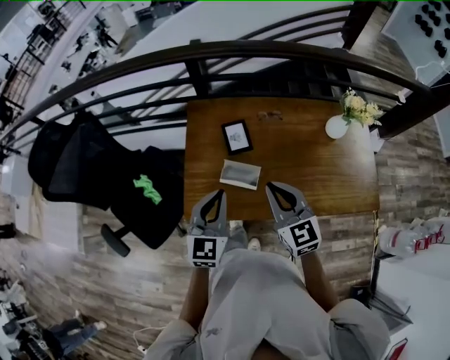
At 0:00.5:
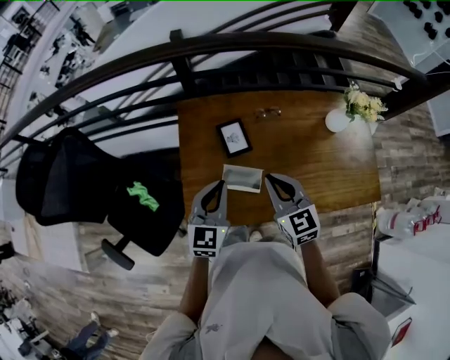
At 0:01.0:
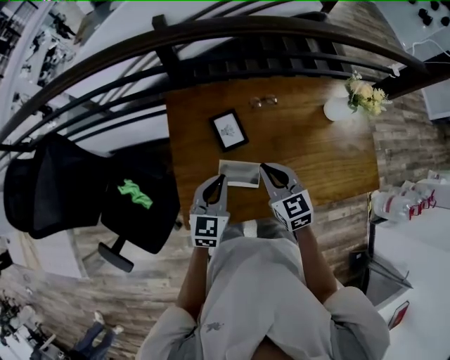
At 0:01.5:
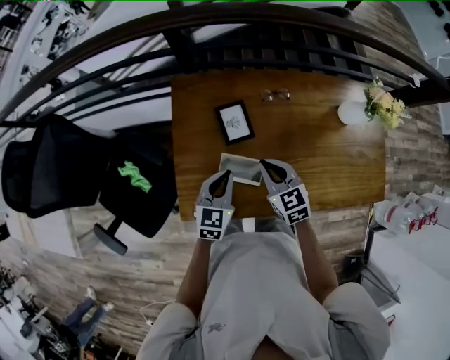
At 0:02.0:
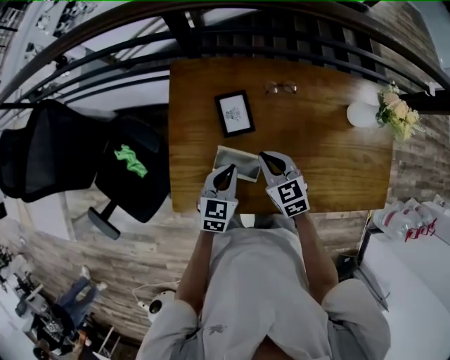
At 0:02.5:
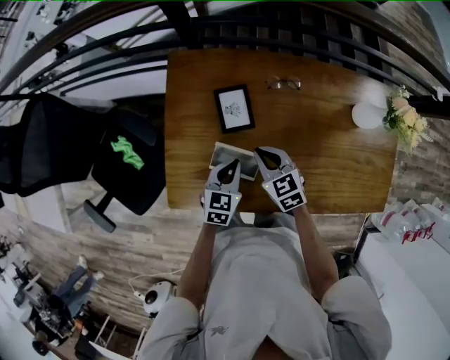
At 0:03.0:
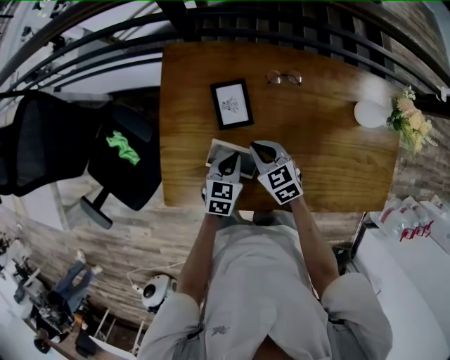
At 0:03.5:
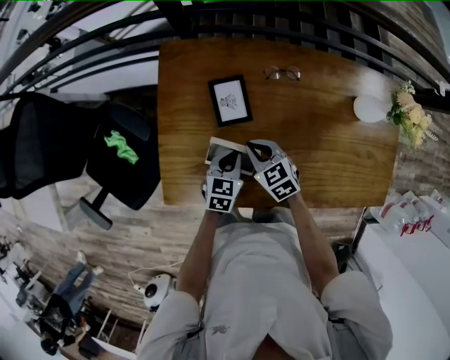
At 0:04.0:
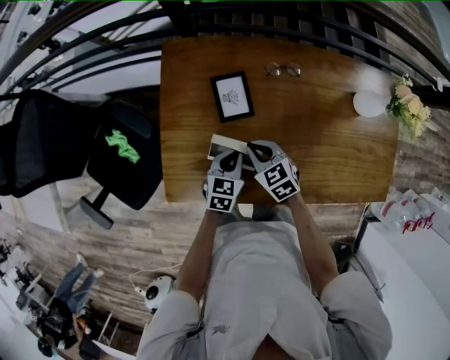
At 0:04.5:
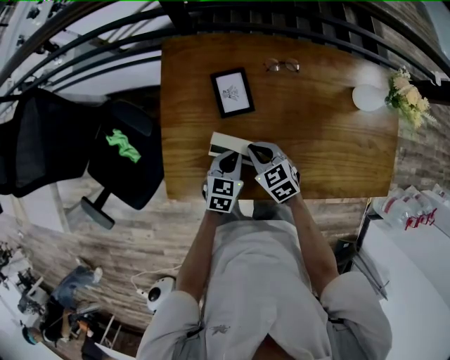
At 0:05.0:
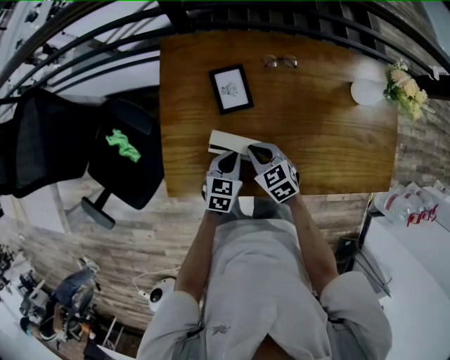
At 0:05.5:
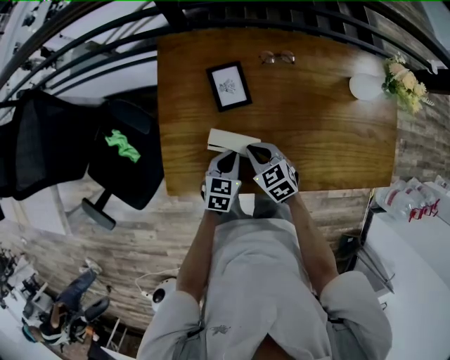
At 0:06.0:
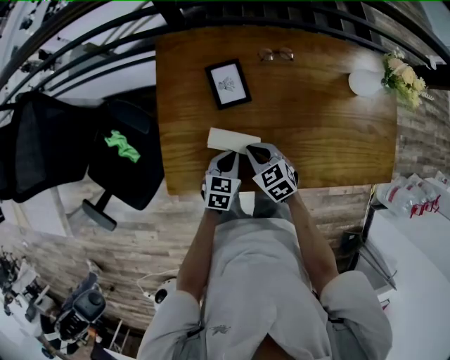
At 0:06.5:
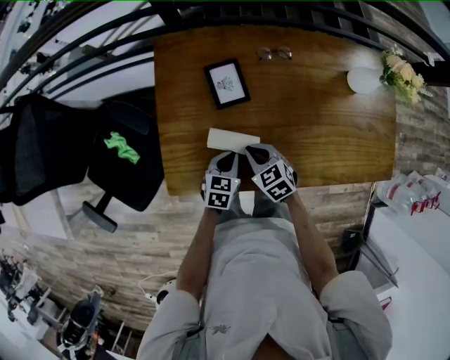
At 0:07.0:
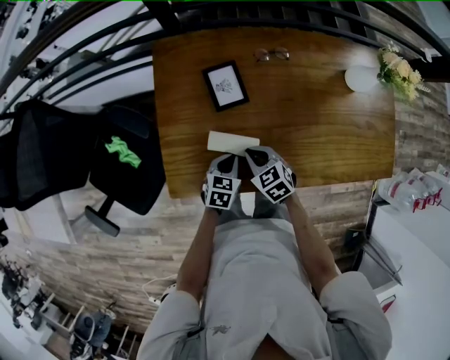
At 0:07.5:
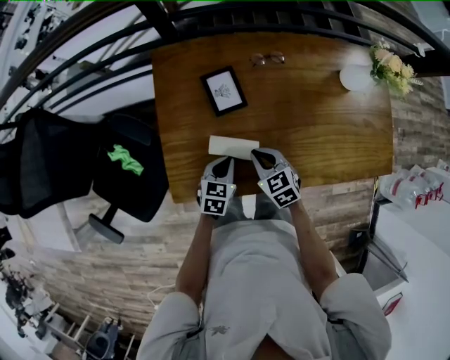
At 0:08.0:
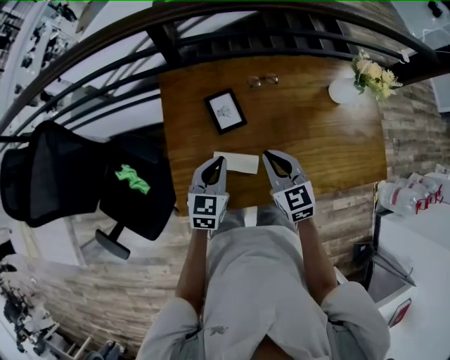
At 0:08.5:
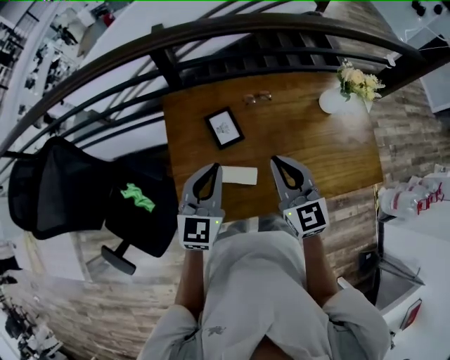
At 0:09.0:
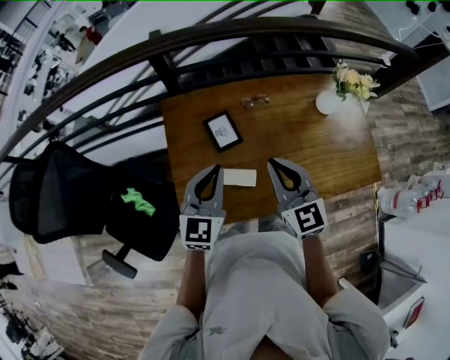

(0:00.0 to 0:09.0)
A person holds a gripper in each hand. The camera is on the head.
0:00.0 - 0:02.0: Both grippers travel together downward and forward, roughly 25 cm. The left gripper turns by roughly 20 degrees. Meanwhile the right gripper rotates some 20 degrees.
0:02.0 - 0:04.5: The grippers both shift downward by approximately 10 cm.
0:04.5 - 0:07.0: The right gripper moves some 5 cm; the left gripper moves approximately 5 cm.
0:07.0 - 0:09.0: The two grippers go roughly 30 cm upward. The right gripper tilts its fingers about 40 degrees upward. Meanwhile the left gripper tilts its fingers approximately 40 degrees upward.

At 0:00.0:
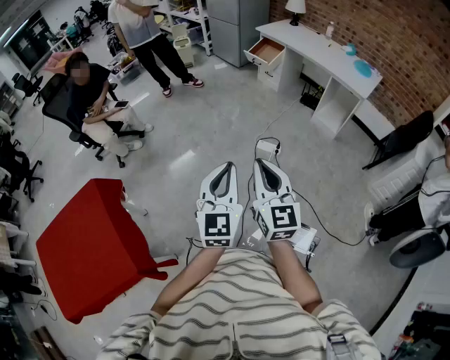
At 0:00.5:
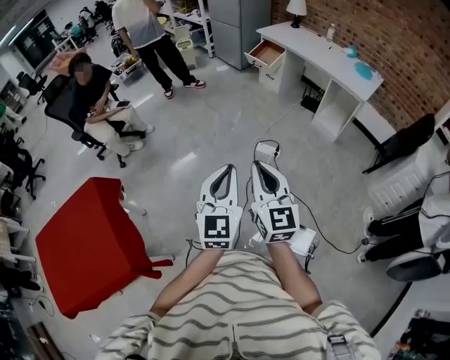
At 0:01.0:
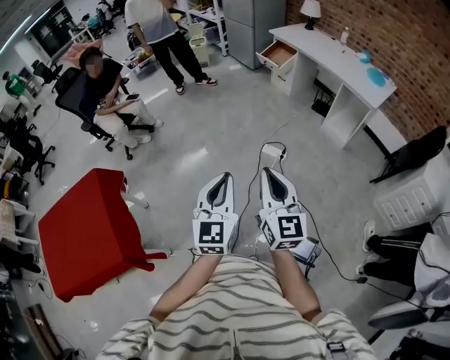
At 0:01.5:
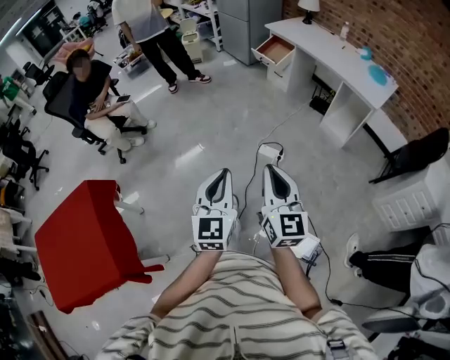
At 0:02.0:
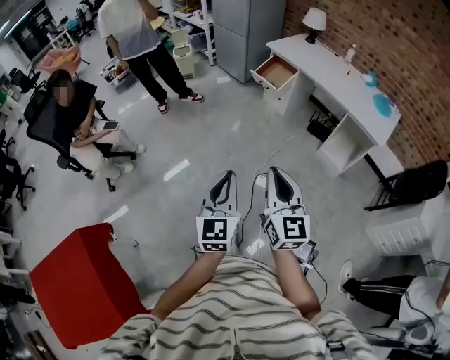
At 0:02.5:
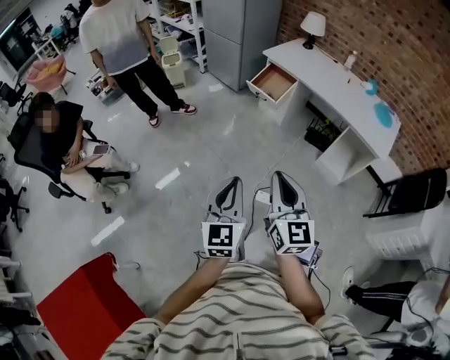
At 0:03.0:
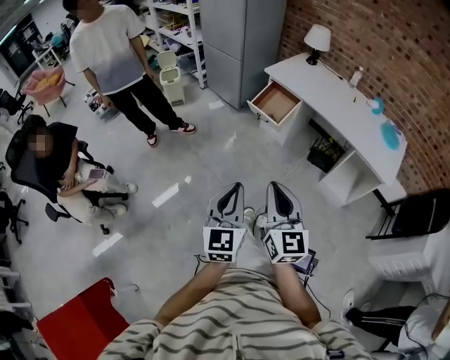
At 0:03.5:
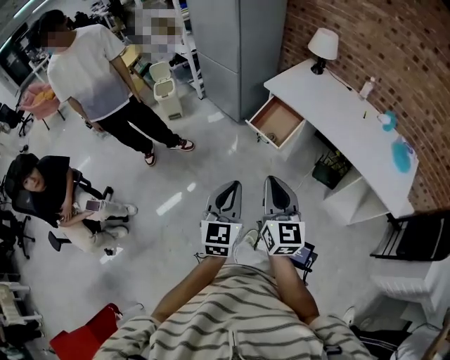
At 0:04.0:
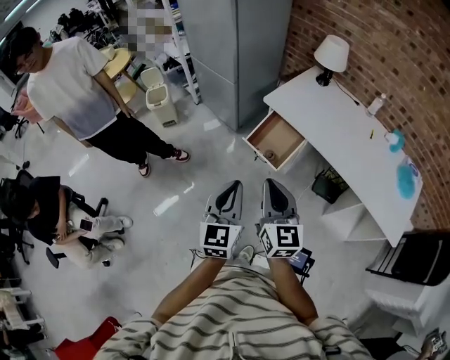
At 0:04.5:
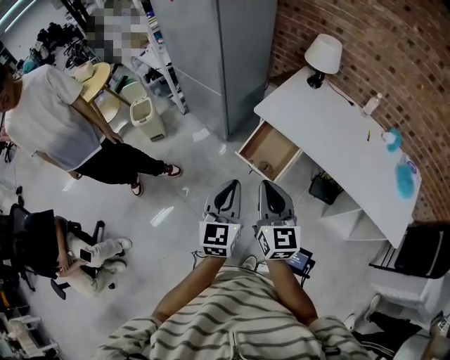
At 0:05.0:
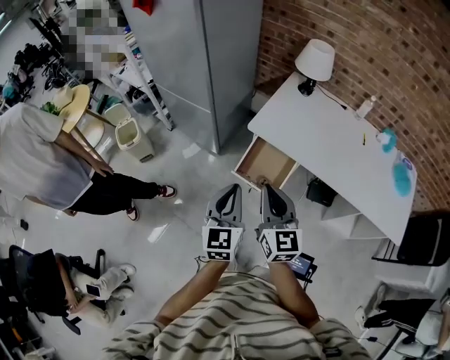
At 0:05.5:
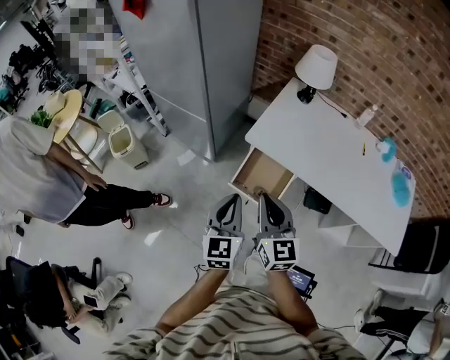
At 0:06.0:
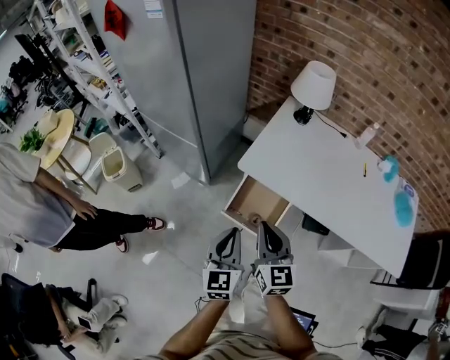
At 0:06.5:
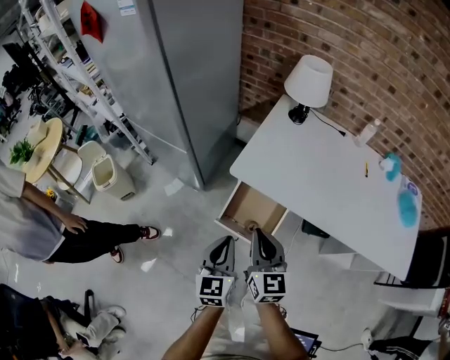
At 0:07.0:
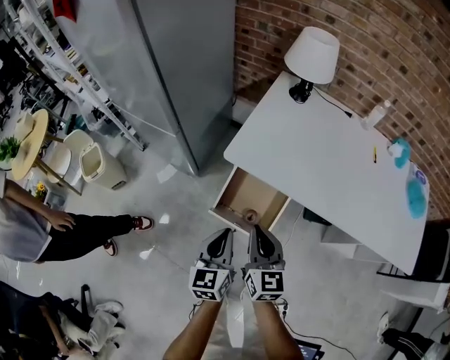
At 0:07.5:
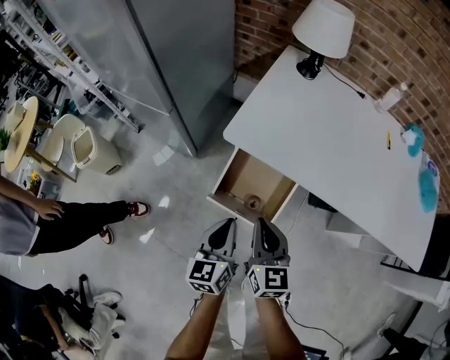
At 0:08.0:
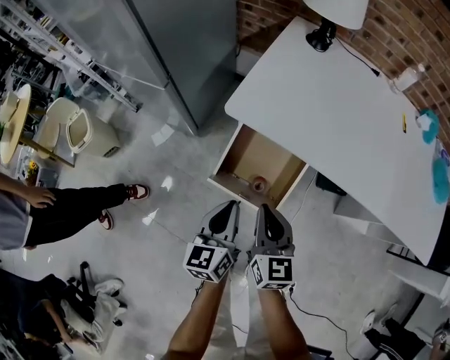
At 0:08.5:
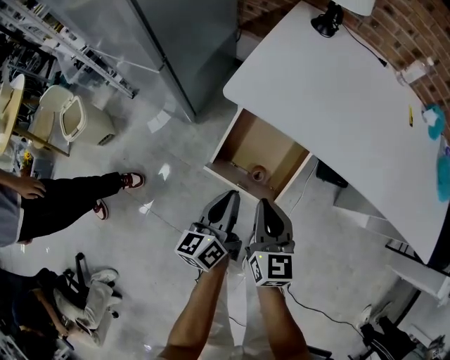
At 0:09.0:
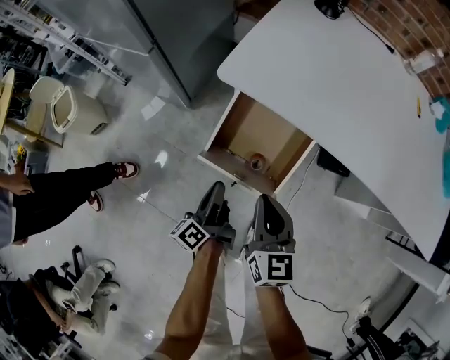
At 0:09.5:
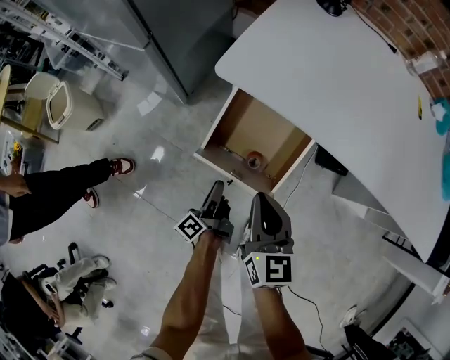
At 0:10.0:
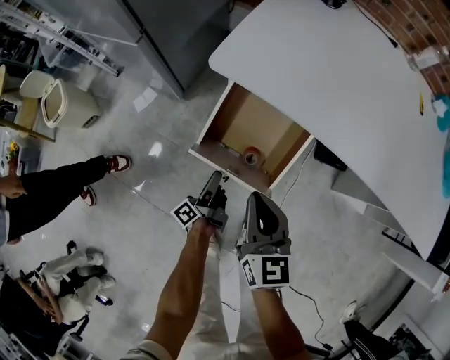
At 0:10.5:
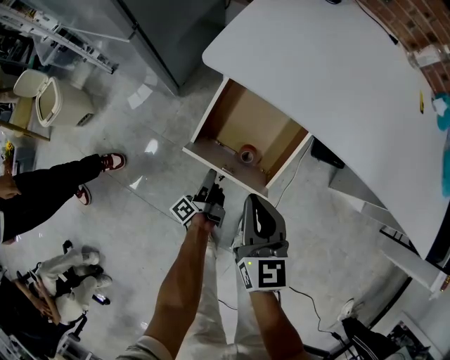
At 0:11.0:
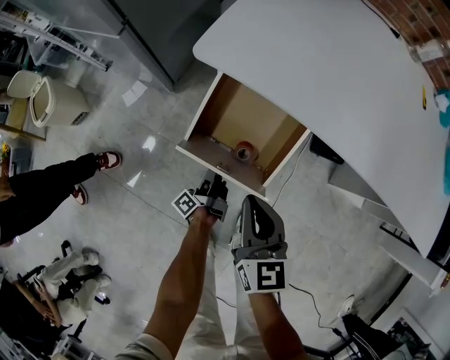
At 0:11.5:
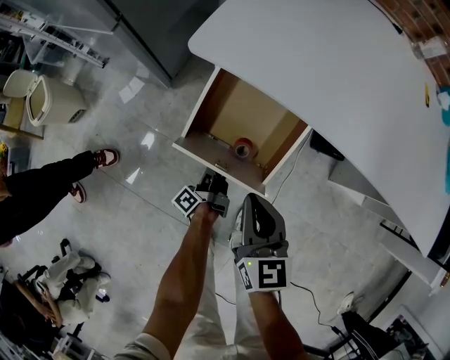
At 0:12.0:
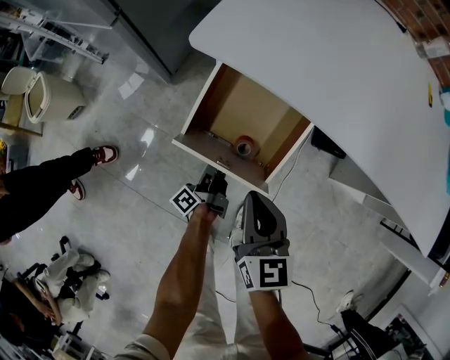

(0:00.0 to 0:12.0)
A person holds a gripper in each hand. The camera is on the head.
0:00.0 - 0:02.0: The grippers both shift forward by about 35 cm.
0:02.0 - 0:04.0: Both grippers are carried forward, some 70 cm.
0:04.0 - 0:06.0: The two grippers go roughly 30 cm forward.
0:06.0 - 0:08.0: The two grippers go some 25 cm downward. The left gripper turns by approximately 20 degrees.
0:08.0 - 0:10.0: The left gripper goes some 25 cm downward, twists approximately 60 degrees counterclockwise, seen from behind, and opens up.
0:10.0 - 0:12.0: The left gripper shifts about 5 cm downward, and closes. The right gripper ends up some 5 cm from where it was.

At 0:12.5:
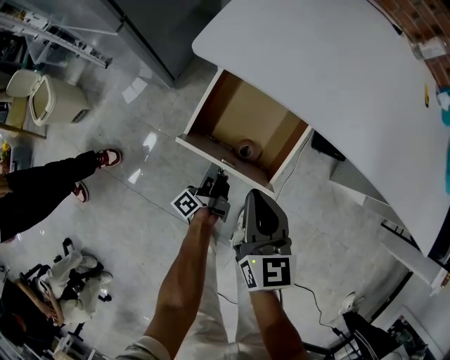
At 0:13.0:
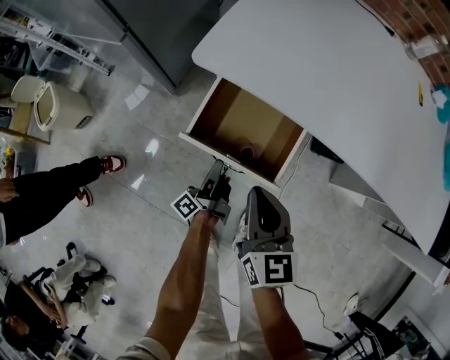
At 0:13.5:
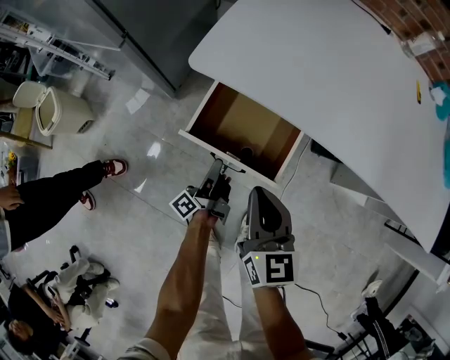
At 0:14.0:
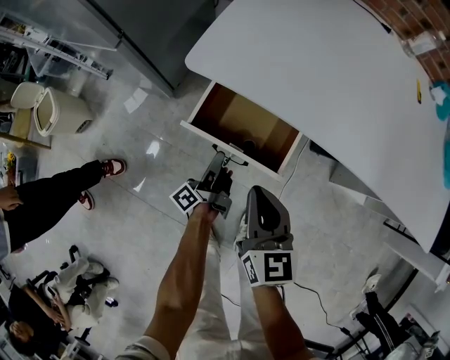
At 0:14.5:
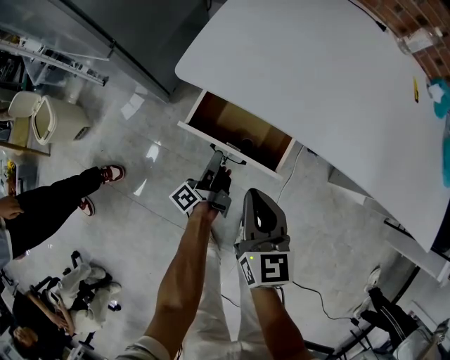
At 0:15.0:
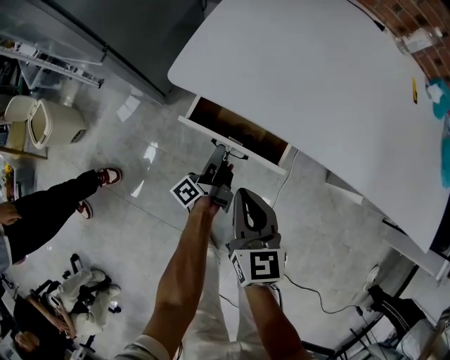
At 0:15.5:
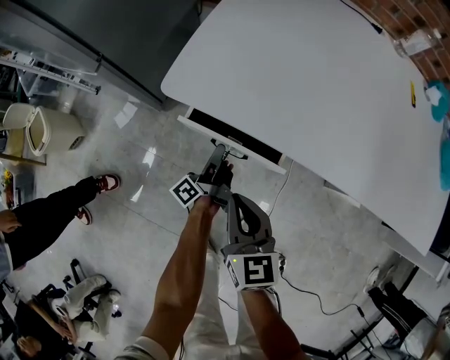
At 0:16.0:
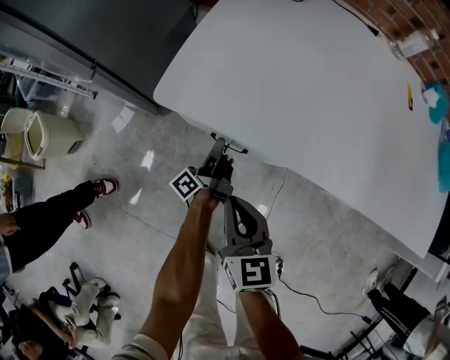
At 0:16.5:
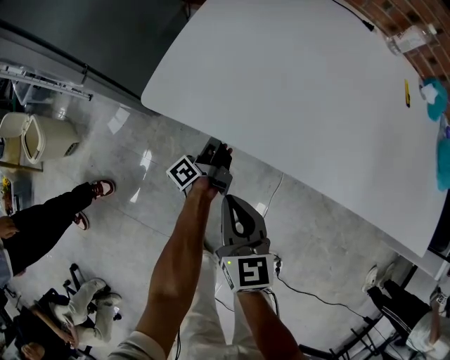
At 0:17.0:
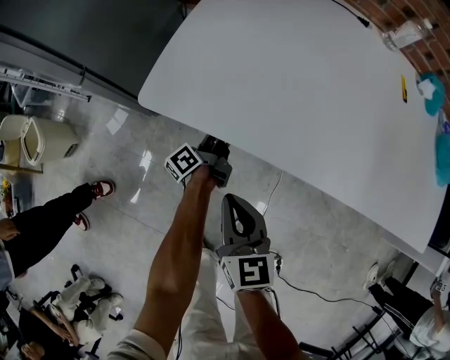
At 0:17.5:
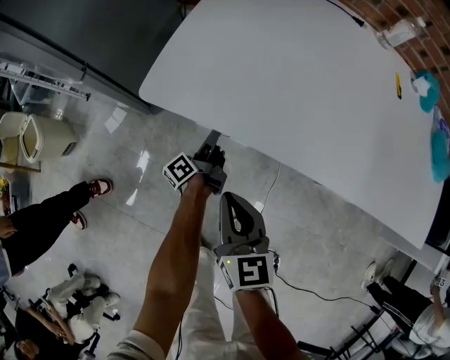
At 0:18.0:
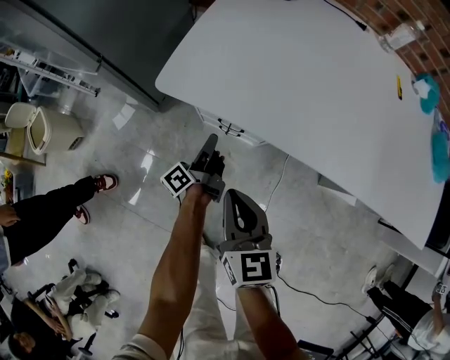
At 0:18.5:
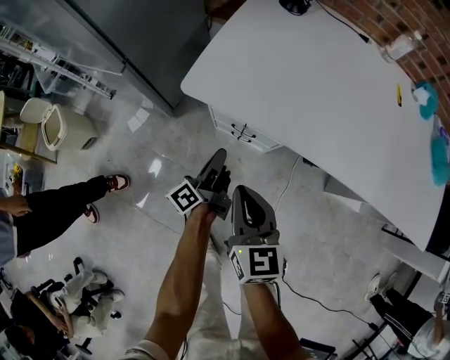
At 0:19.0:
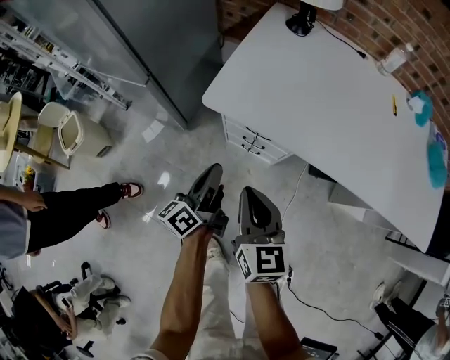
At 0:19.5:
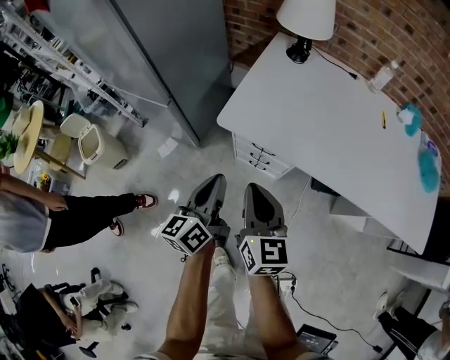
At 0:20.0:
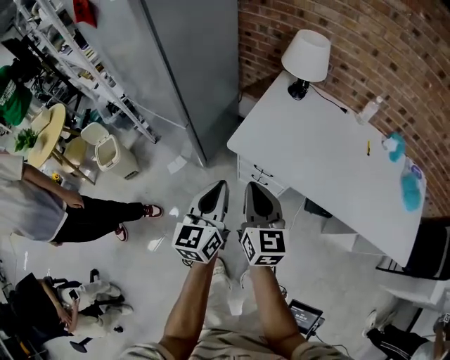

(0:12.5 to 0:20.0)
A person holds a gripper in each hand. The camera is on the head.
0:12.5 - 0:14.5: The left gripper travels upward and forward by roughly 10 cm.
0:14.5 - 0:16.5: The right gripper travels forward by some 5 cm; the left gripper goes roughly 15 cm forward and to the right.
0:16.5 - 0:18.0: The left gripper moves backward, some 5 cm.
0:18.0 - 0:20.0: The right gripper moves upward, roughly 30 cm, while the left gripper heads upward, covering roughly 40 cm, and rolls clockwise, seen from behind, by approximately 70 degrees.
